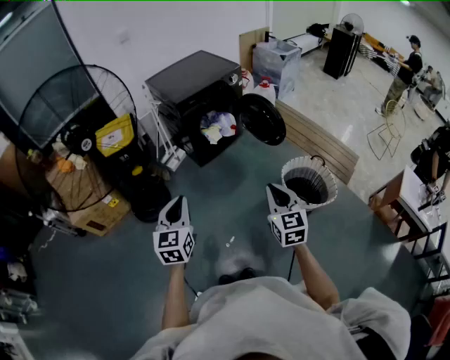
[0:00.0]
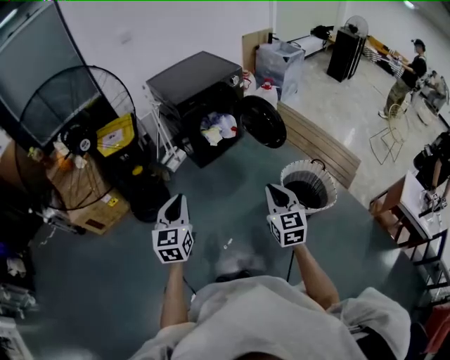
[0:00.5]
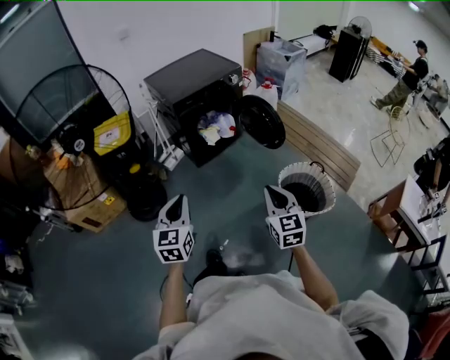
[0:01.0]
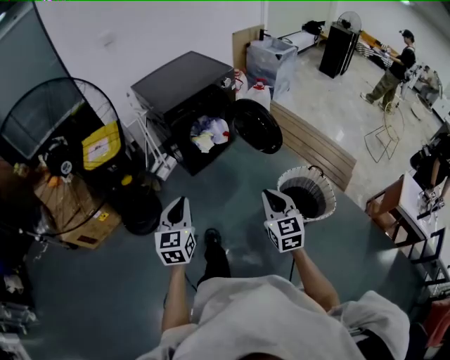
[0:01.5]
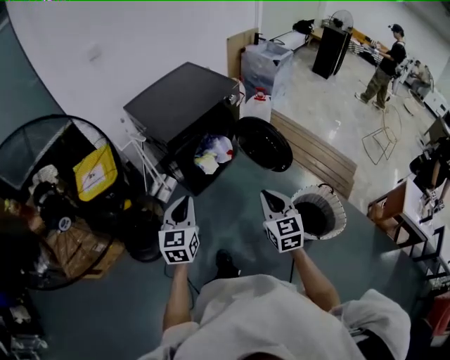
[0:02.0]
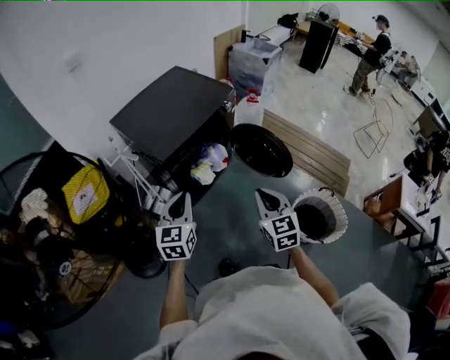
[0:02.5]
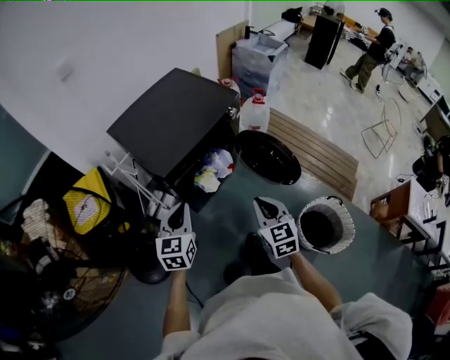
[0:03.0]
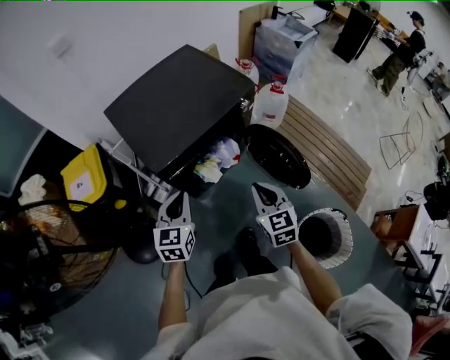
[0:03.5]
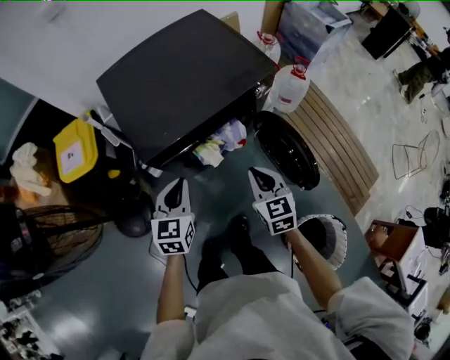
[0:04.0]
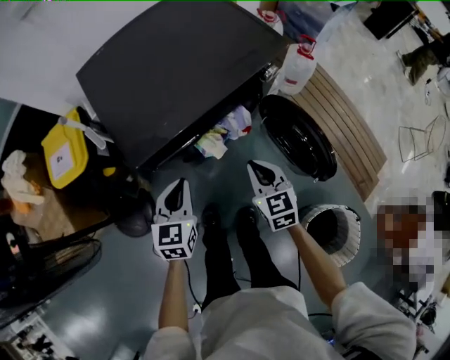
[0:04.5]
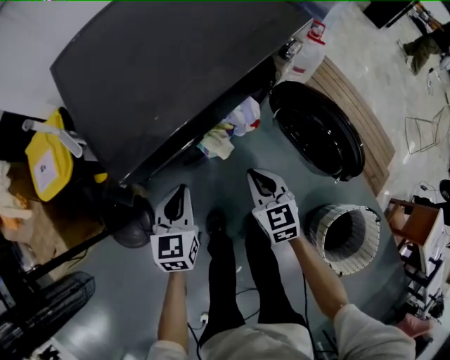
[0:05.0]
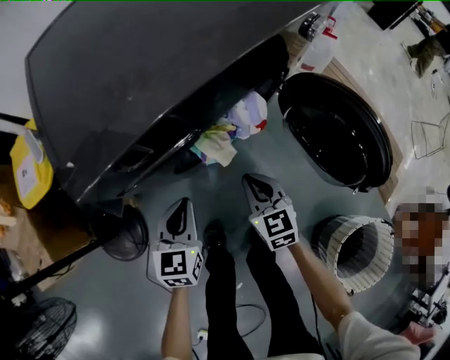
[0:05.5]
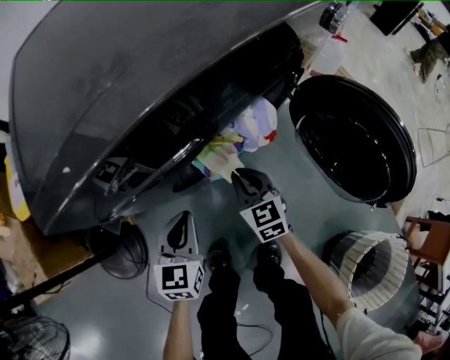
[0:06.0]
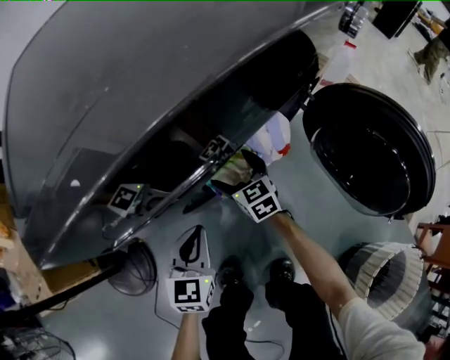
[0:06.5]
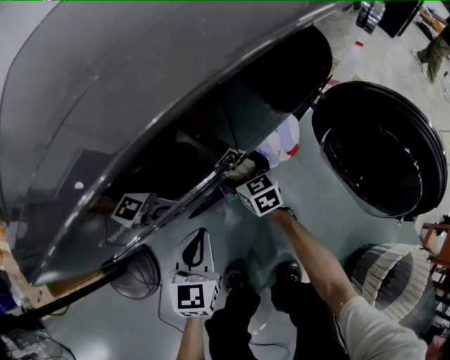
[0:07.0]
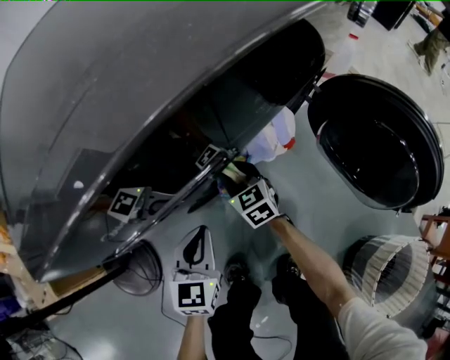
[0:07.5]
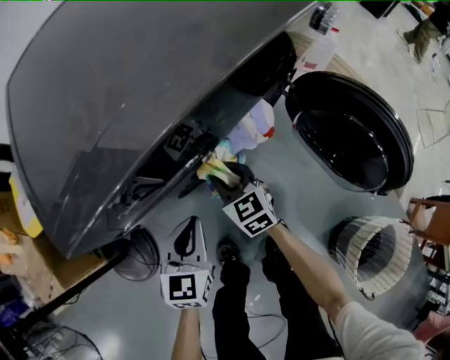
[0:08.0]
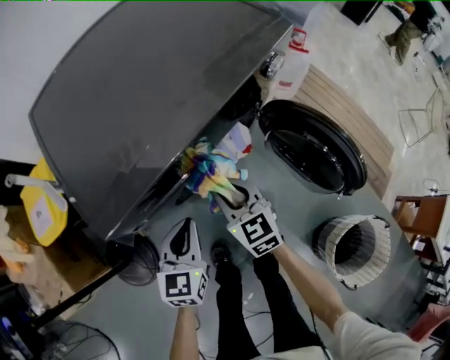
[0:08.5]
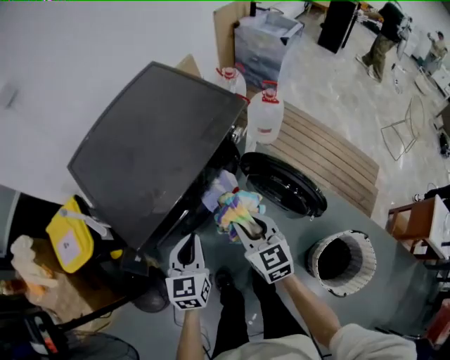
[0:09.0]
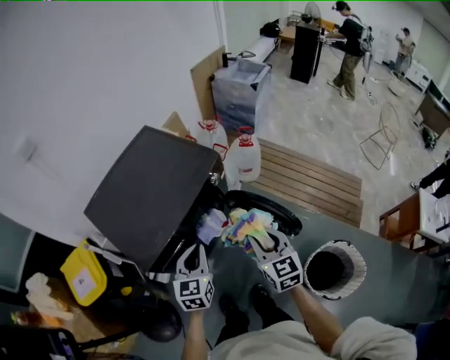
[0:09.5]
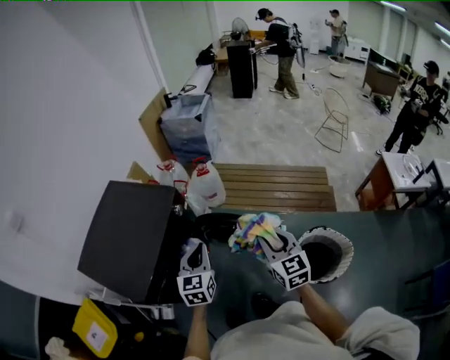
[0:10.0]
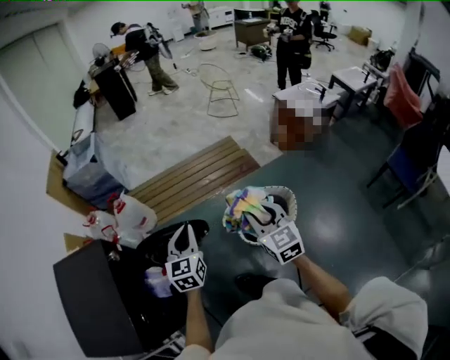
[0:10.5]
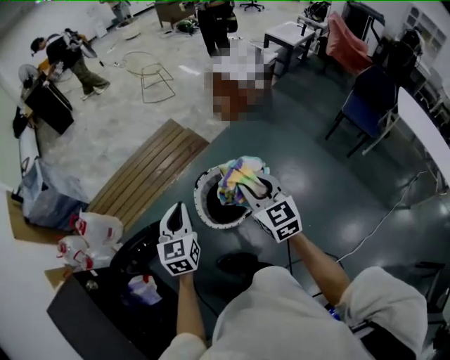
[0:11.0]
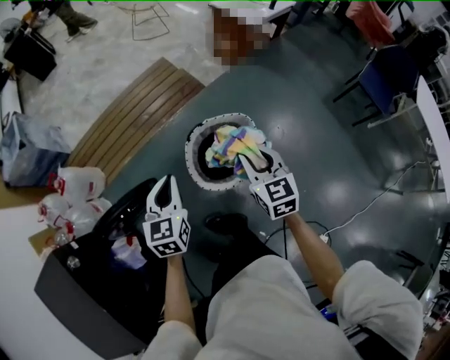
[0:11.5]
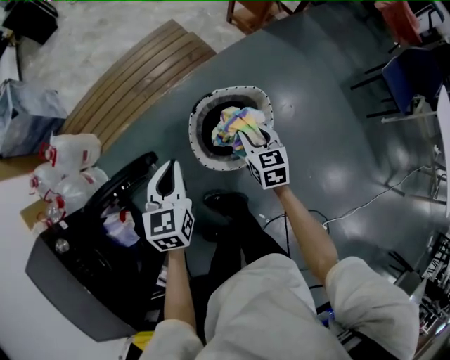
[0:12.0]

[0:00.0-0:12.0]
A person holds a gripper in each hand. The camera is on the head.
0:00.0 to 0:02.0: Both grippers move forward, about 35 cm.
0:02.0 to 0:04.0: The two grippers go approximately 35 cm forward. The right gripper turns by approximately 20 degrees.
0:04.0 to 0:06.0: Both grippers travel together downward, approximately 40 cm.
0:06.0 to 0:08.0: The right gripper moves some 10 cm downward and comes back, and opens and closes again.
0:08.0 to 0:10.0: Both grippers move upward, roughly 50 cm. The right gripper swivels some 50 degrees; the left gripper swivels roughly 30 degrees.
0:10.0 to 0:12.0: The two grippers travel together, approximately 40 cm. The left gripper turns by roughly 50 degrees. The right gripper turns by roughly 60 degrees.

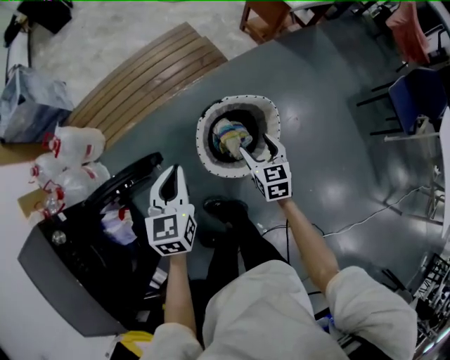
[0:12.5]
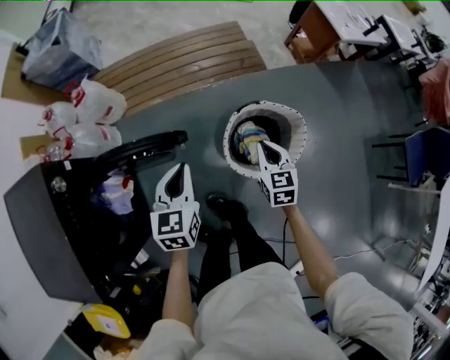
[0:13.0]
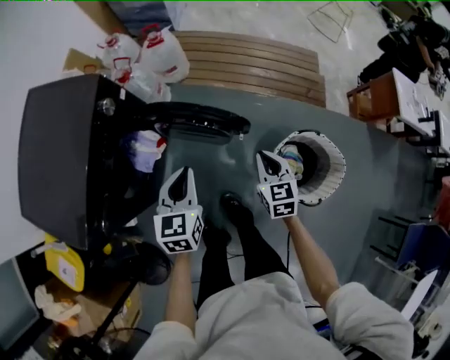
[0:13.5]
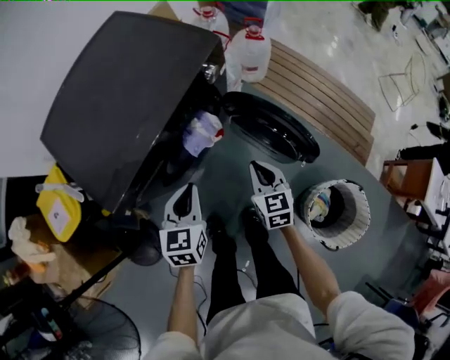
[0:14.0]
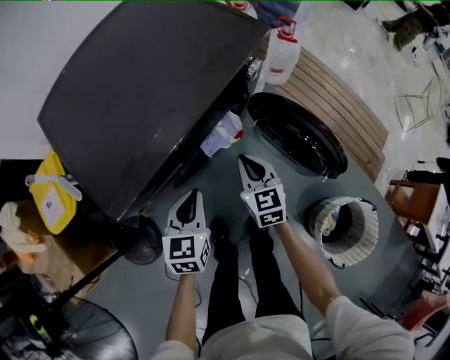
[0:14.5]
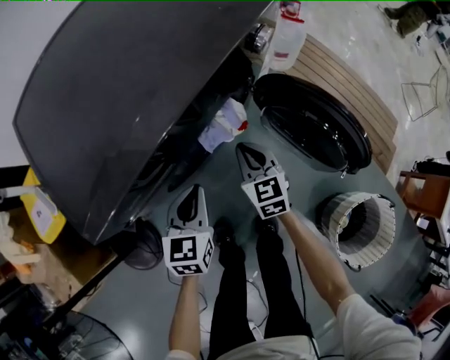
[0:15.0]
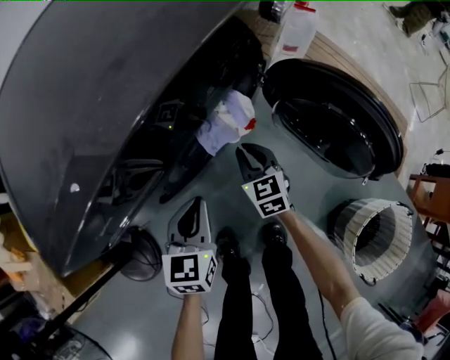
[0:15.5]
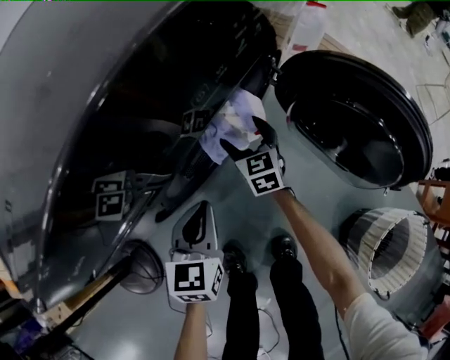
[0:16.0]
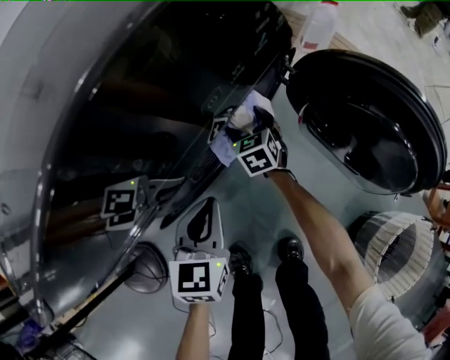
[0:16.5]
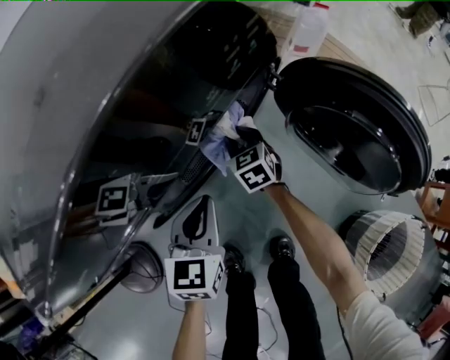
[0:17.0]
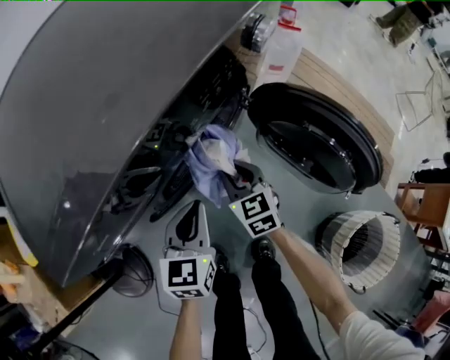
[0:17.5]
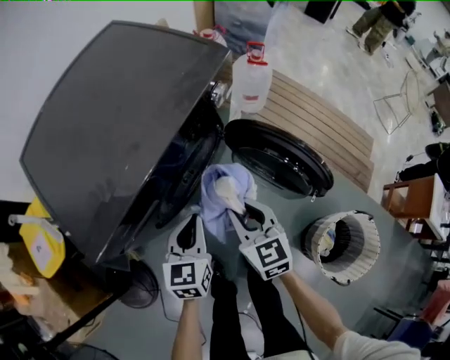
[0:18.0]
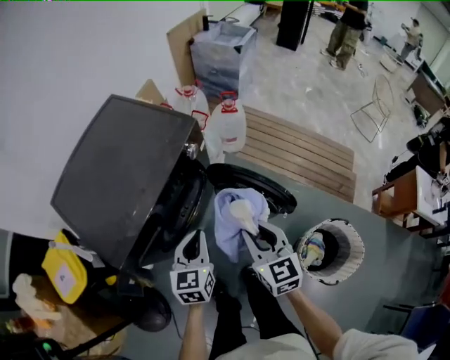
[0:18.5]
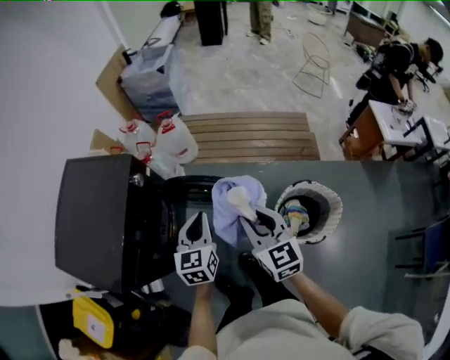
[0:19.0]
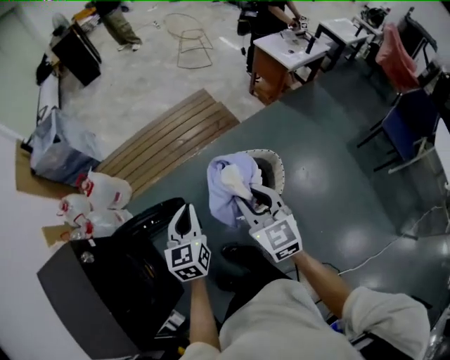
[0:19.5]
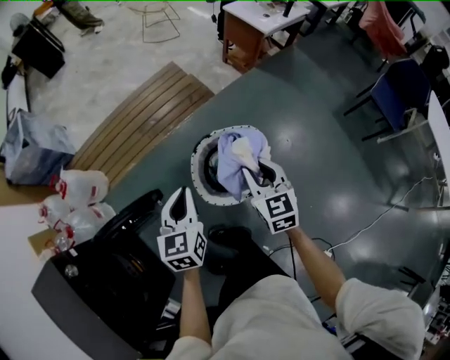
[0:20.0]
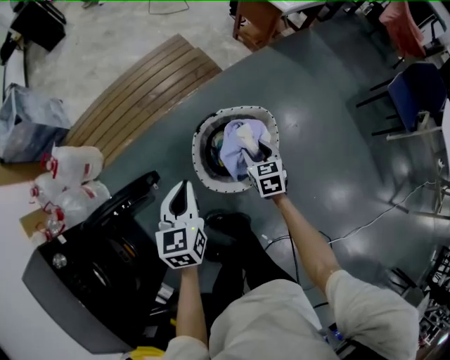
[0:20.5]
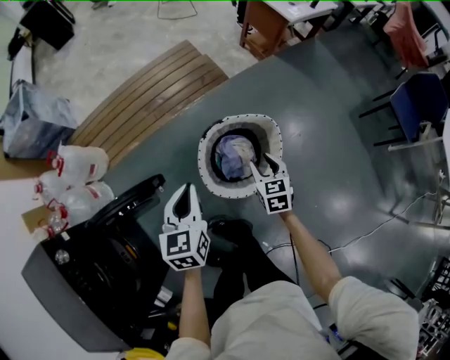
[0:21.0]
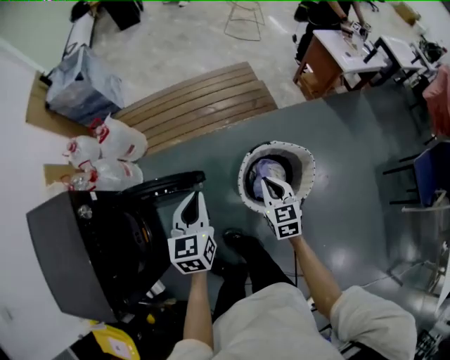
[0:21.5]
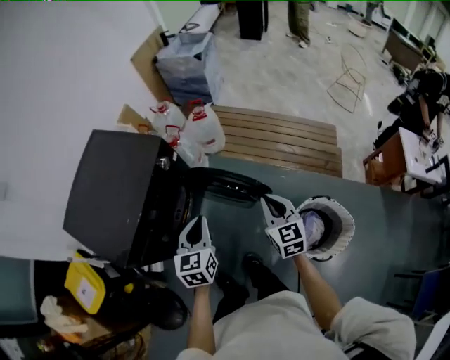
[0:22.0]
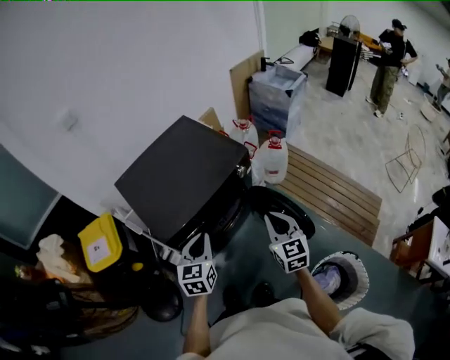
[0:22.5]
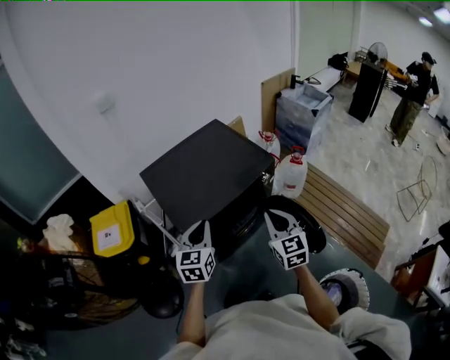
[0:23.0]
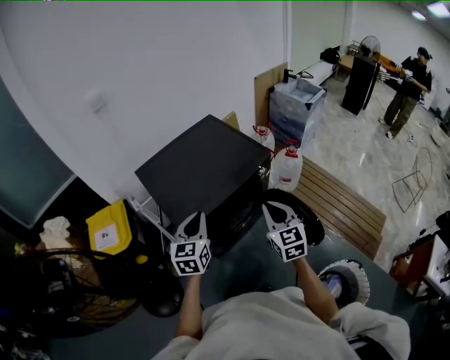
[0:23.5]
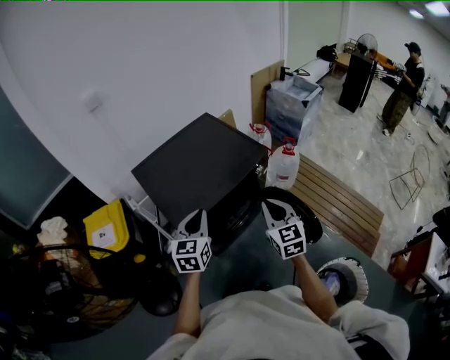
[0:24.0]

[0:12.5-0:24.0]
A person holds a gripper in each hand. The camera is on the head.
0:12.5 to 0:14.5: The pair of grippers is taken some 70 cm. The right gripper changes its angle by roughly 80 degrees, and closes up. Meanwhile the left gripper changes its angle by approximately 70 degrees.
0:14.5 to 0:16.5: The left gripper is displaced downward by about 20 cm. Meanwhile the right gripper is displaced downward and forward by about 40 cm, and opens.
0:16.5 to 0:18.5: The right gripper heads upward and backward, covering approximately 60 cm, rotates approximately 30 degrees, and closes up; the left gripper travels upward and to the right by roughly 40 cm.
0:18.5 to 0:20.0: Both grippers are carried some 60 cm. The left gripper rotates approximately 60 degrees; the right gripper changes its angle by some 70 degrees.
0:20.0 to 0:22.0: Both grippers are carried roughly 40 cm. The right gripper changes its angle by roughly 50 degrees; the left gripper swivels about 50 degrees.
0:22.0 to 0:24.0: The right gripper moves roughly 30 cm, and turns by about 30 degrees. The left gripper moves roughly 30 cm, and swivels roughly 20 degrees.

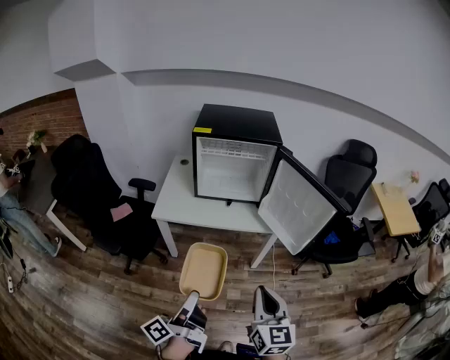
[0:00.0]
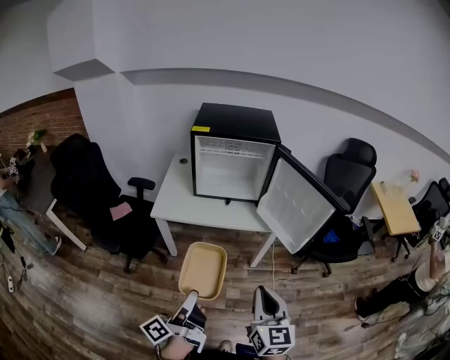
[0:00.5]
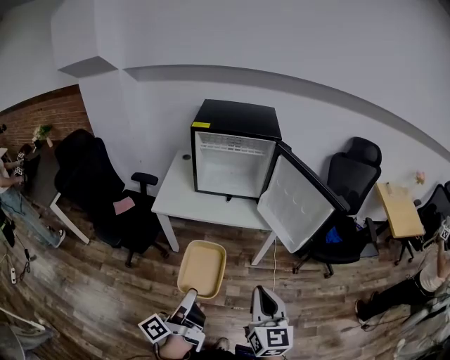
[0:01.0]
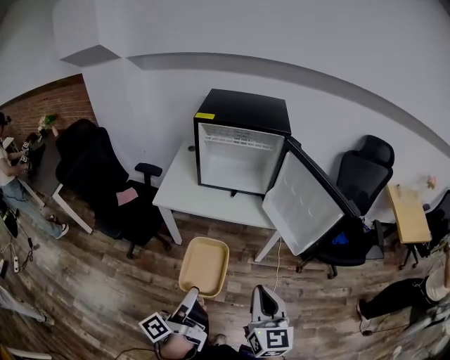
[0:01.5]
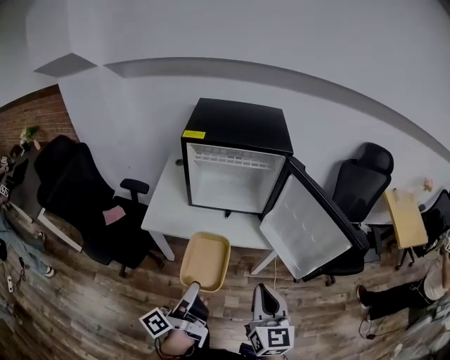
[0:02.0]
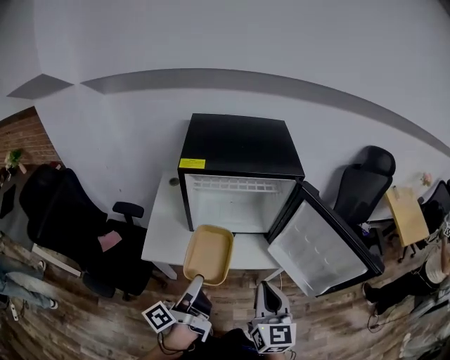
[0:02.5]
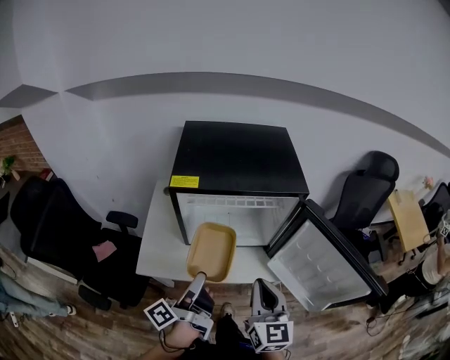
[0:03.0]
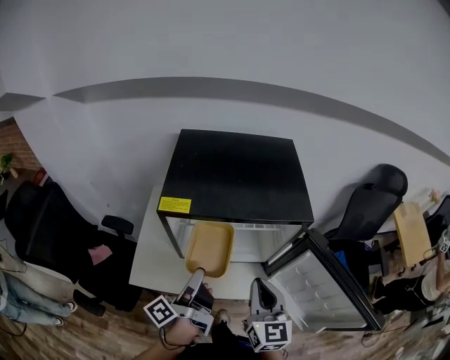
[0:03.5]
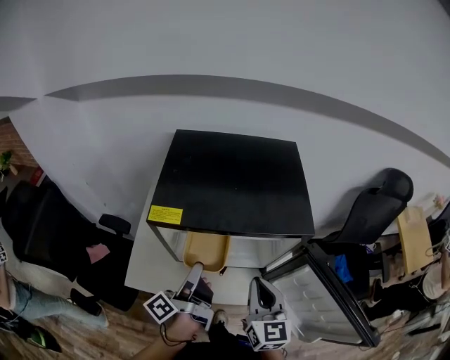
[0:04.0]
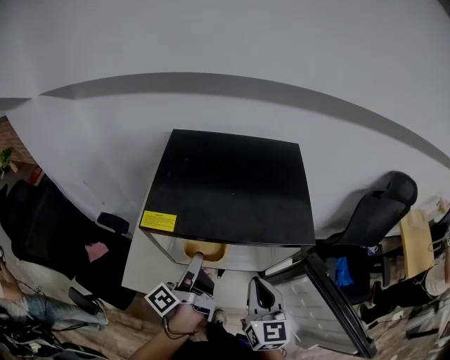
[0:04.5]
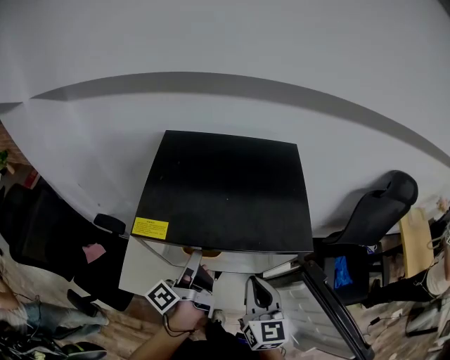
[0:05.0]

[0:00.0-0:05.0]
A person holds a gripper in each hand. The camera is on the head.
0:00.0 to 0:02.5: The grippers both shift forward by some 30 cm.
0:02.5 to 0:05.0: The two grippers go roughly 30 cm forward.
